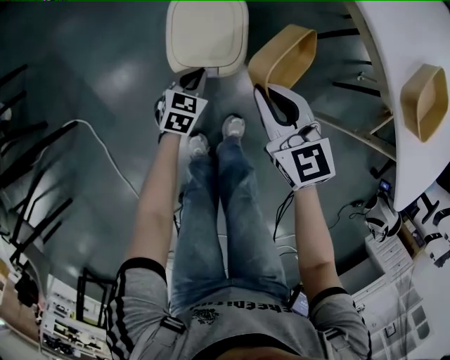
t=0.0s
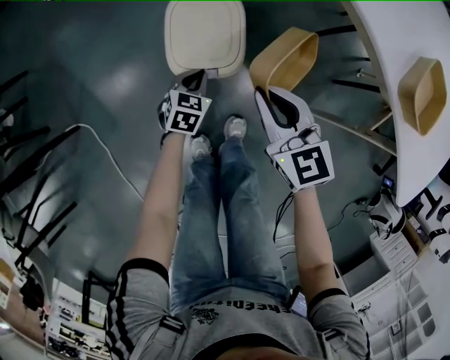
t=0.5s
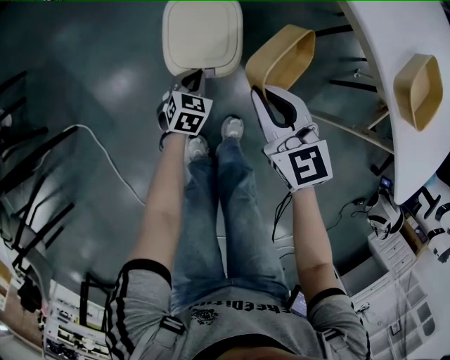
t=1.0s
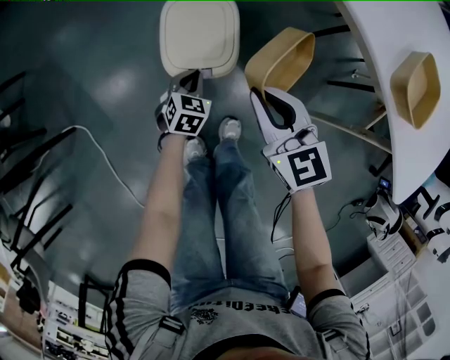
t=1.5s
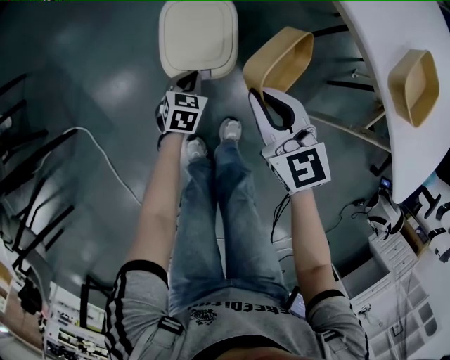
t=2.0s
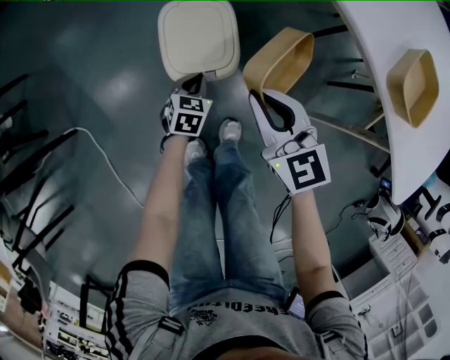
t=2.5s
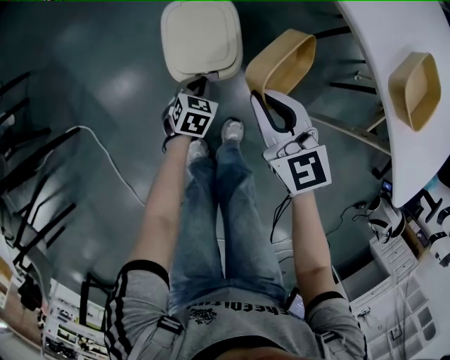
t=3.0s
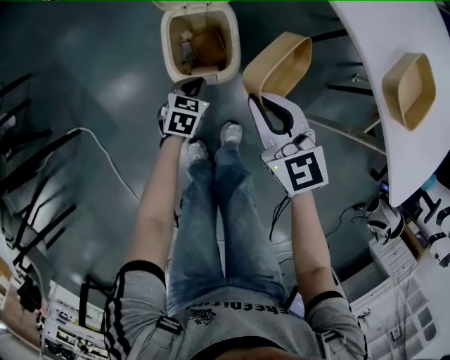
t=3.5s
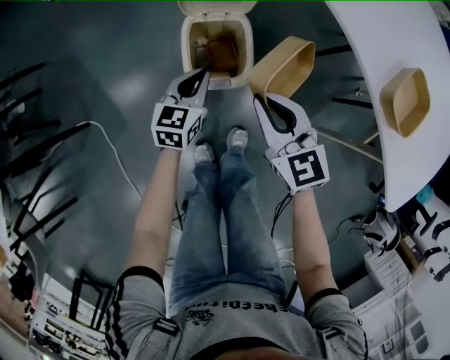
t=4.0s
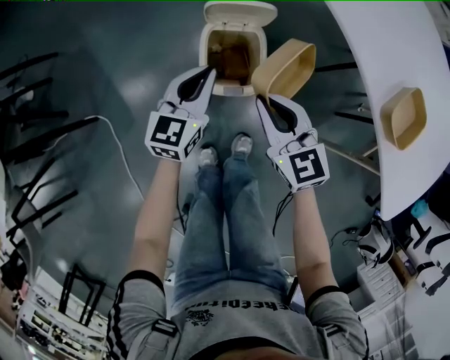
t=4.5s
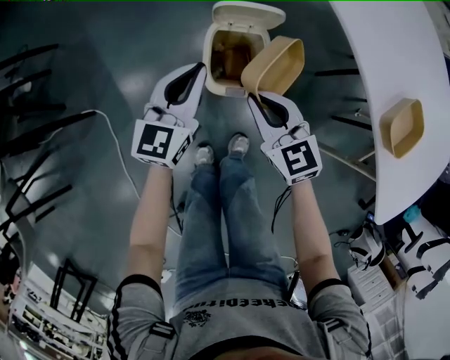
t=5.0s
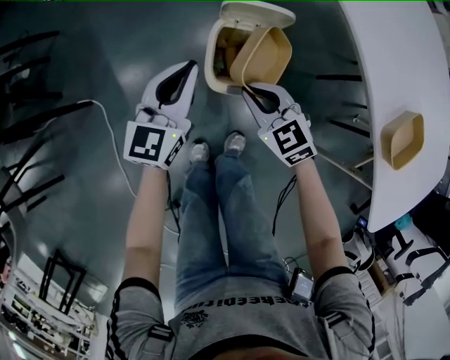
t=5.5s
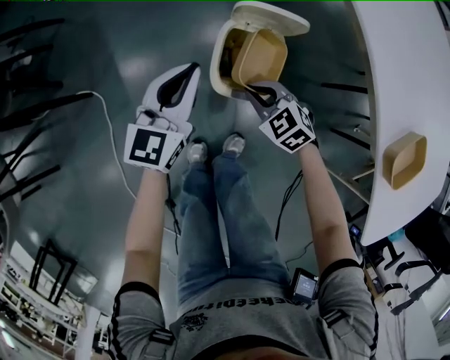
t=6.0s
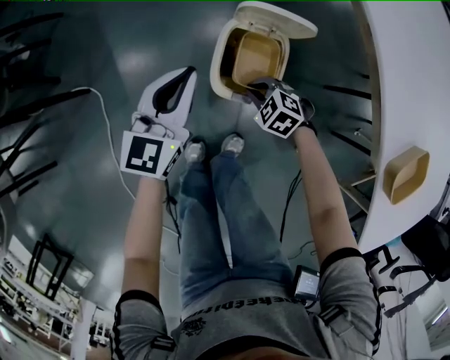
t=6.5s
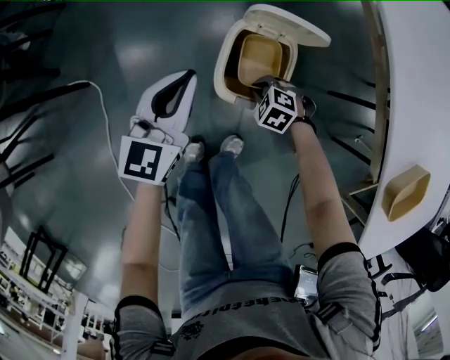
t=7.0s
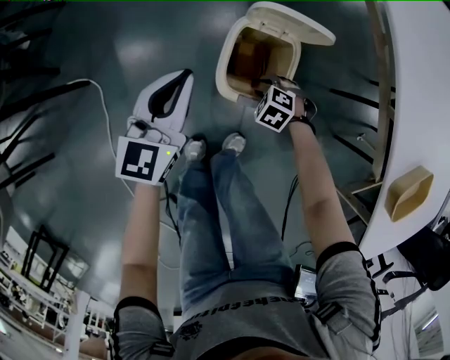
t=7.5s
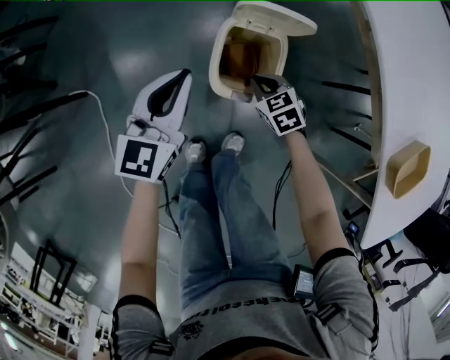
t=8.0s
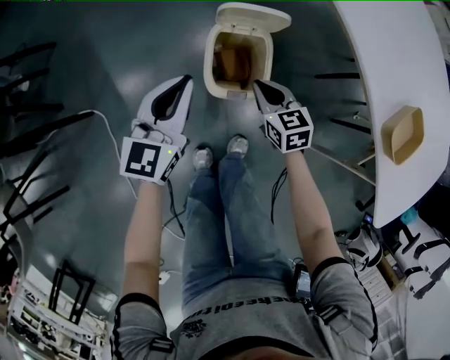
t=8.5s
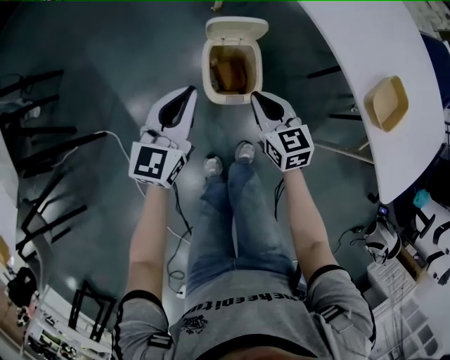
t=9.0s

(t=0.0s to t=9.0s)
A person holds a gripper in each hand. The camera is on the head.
t=0.0s - t=2.0s: The grippers stay close to where they were, moving slightly.
t=2.0s - t=4.5s: The left gripper is displaced upward by about 25 cm, and tips its fingers upward by about 30 degrees, while the right gripper changes place by approximately 5 cm.
t=4.5s - t=7.0s: The right gripper shifts approximately 30 cm downward, and tips its fingers downward by about 50 degrees. Meanwhile the left gripper changes place by about 10 cm.
t=7.0s - t=9.0s: The right gripper moves upward, roughly 25 cm, points its fingers some 50 degrees further upward, and opens, then closes once more; the left gripper shifts roughly 10 cm upward.

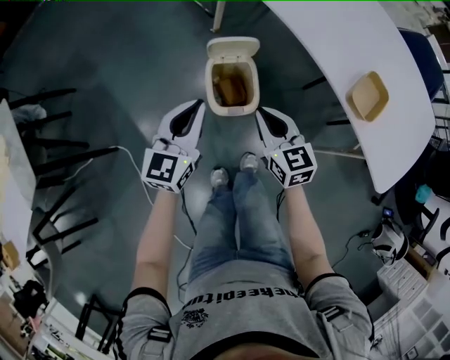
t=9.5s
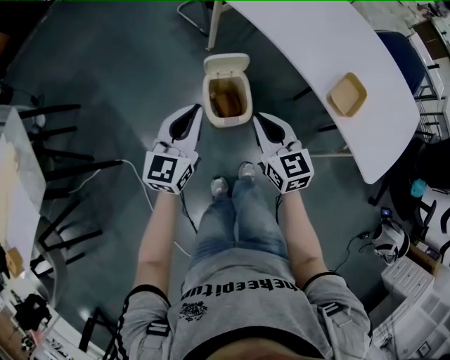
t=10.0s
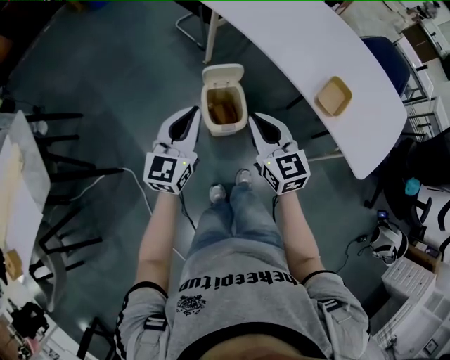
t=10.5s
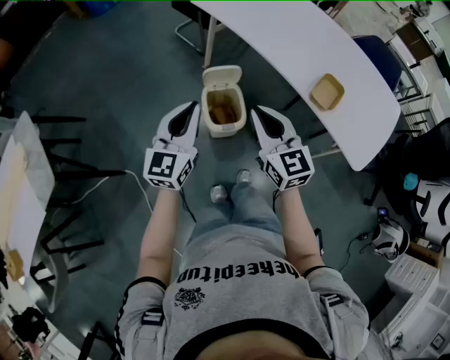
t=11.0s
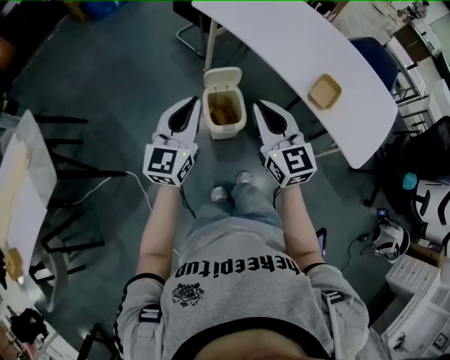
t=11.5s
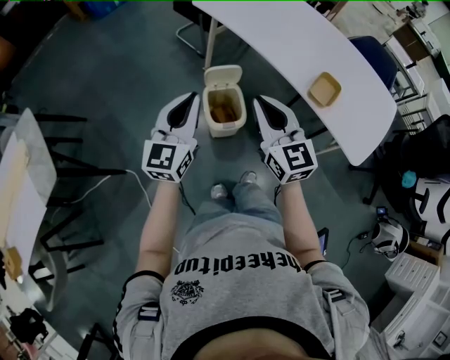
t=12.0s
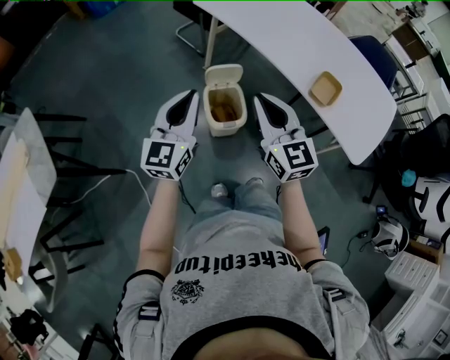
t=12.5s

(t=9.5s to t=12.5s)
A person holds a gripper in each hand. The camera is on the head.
t=9.5s - t=11.0s: The grippers both shift upward by some 15 cm.
t=11.0s - t=12.5s: There are only small adjustments of the grippers.

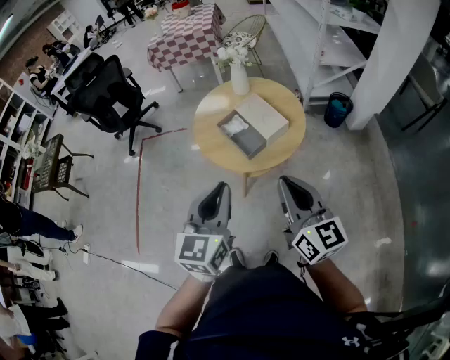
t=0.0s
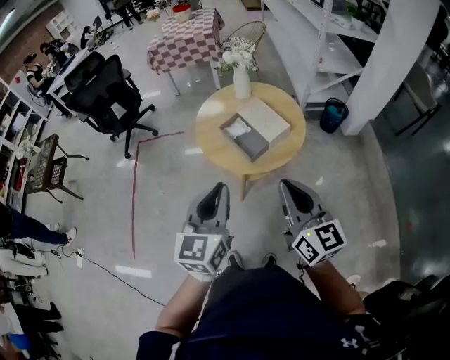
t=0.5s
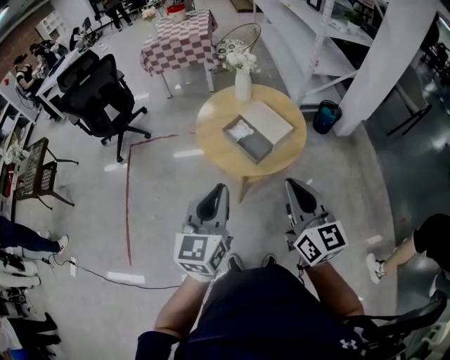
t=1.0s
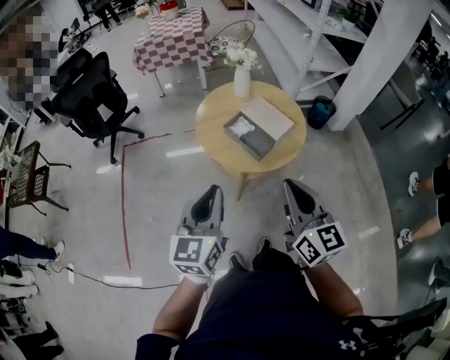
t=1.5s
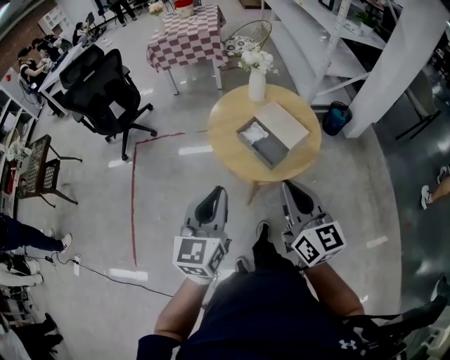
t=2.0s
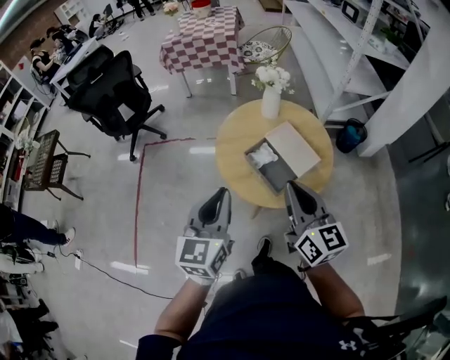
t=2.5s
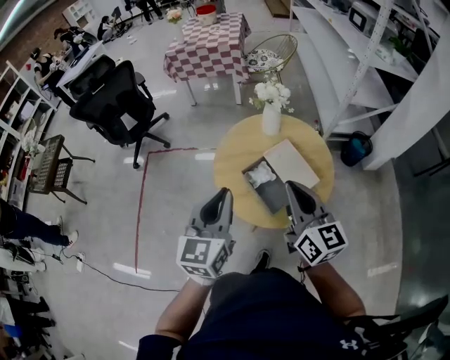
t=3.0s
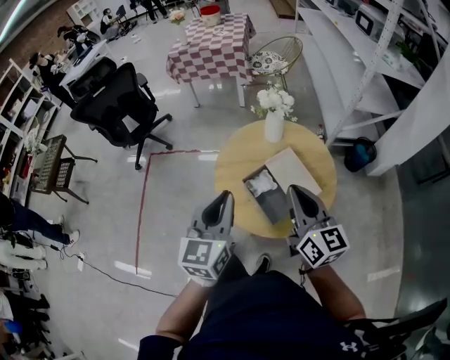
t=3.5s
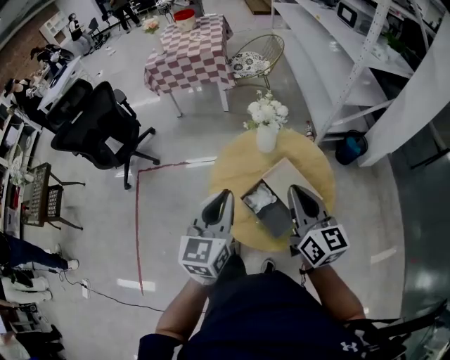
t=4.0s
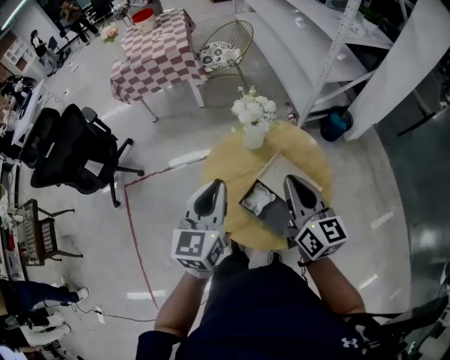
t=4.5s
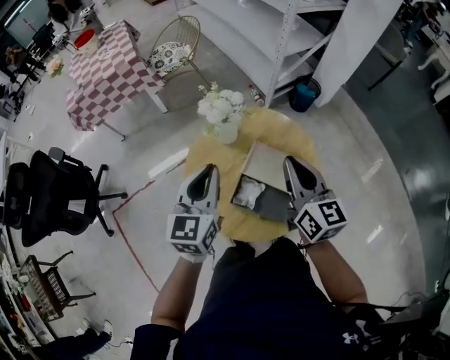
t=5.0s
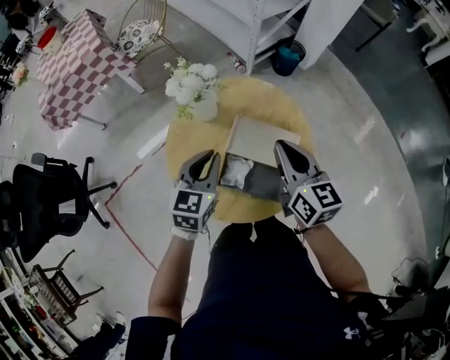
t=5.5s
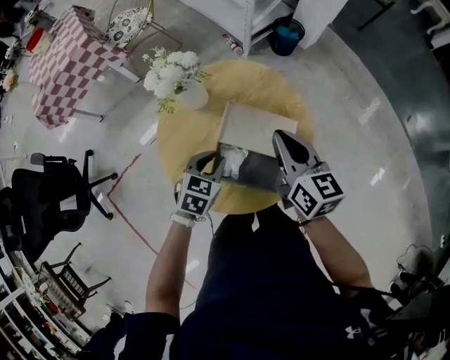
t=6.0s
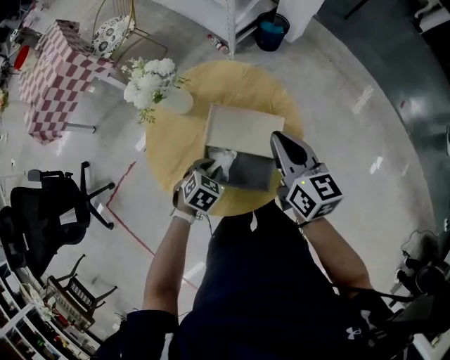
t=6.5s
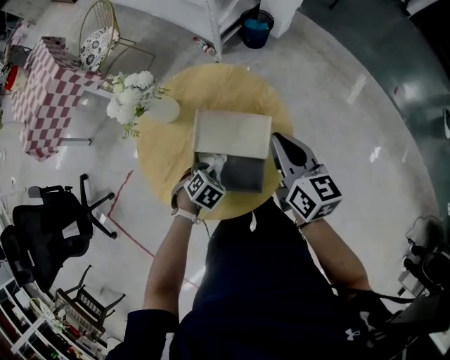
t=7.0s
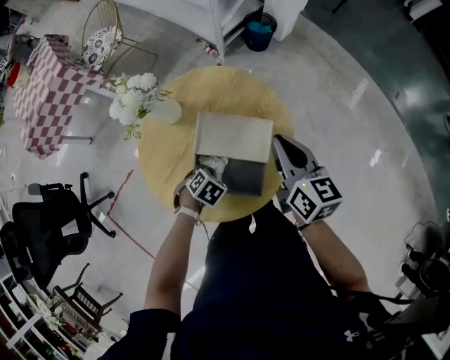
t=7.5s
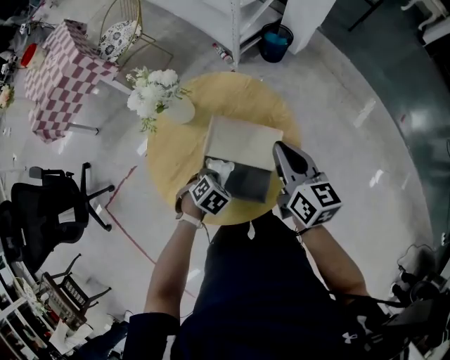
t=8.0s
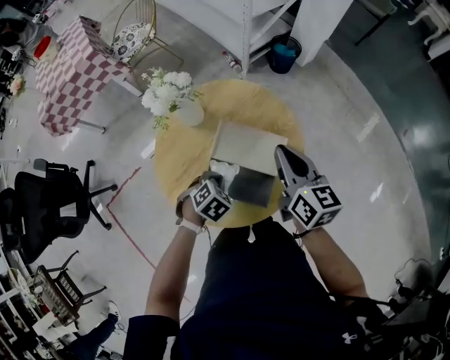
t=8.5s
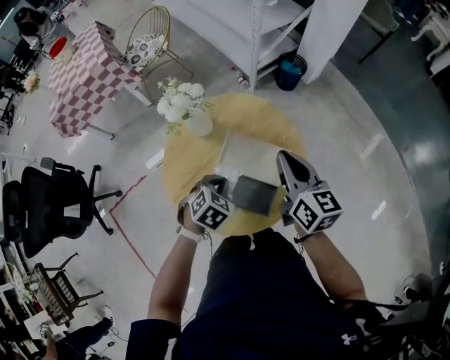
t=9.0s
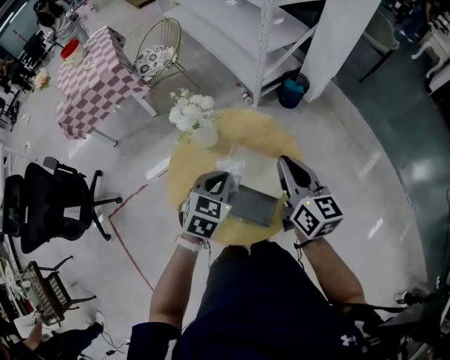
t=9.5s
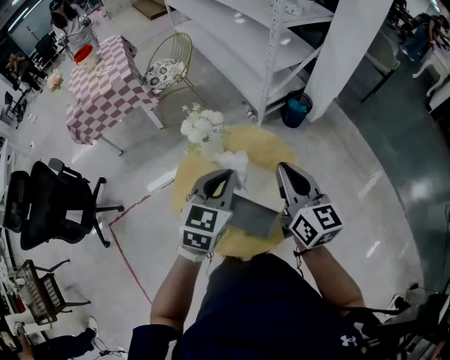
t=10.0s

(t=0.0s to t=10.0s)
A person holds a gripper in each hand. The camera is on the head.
t=0.0s - t=2.0s: Both grippers travel together to the left, about 15 cm.
t=2.0s - t=4.0s: Both grippers move forward, some 30 cm.
t=4.0s - t=6.0s: The right gripper heads downward, covering about 10 cm, and swivels roughly 30 degrees. The left gripper moves downward, some 25 cm, and tips its fingers downward by about 40 degrees.
t=6.0s - t=8.0s: The left gripper moves downward, approximately 10 cm, and rotates roughly 30 degrees. Meanwhile the right gripper moves roughly 5 cm.
t=8.0s - t=10.0s: The left gripper shifts approximately 30 cm upward, and angles its fingers upward, by some 50 degrees; the right gripper shifts about 15 cm upward and to the left.

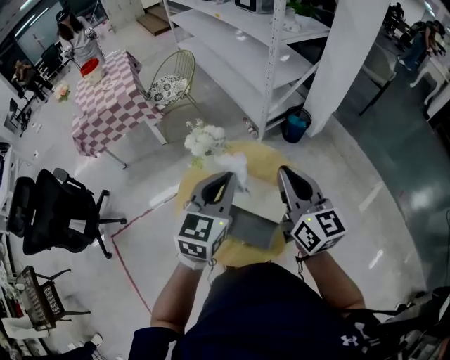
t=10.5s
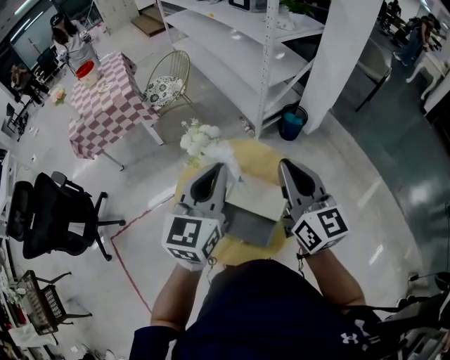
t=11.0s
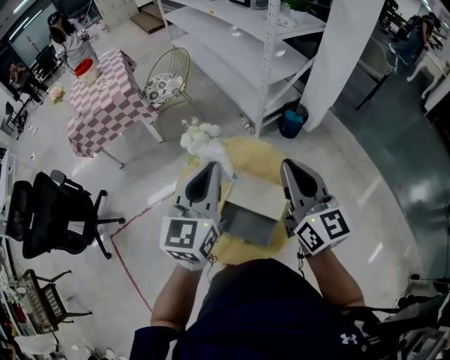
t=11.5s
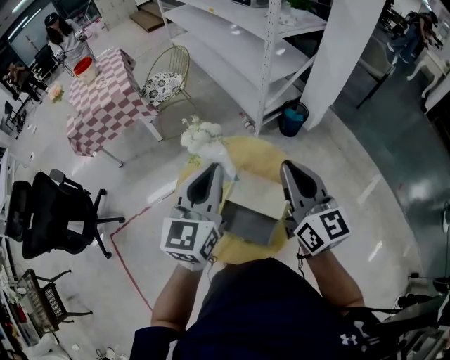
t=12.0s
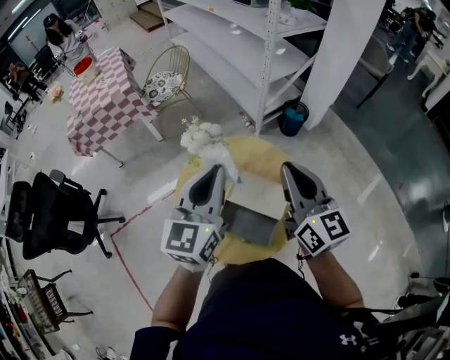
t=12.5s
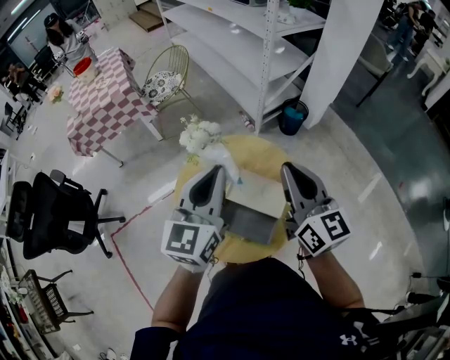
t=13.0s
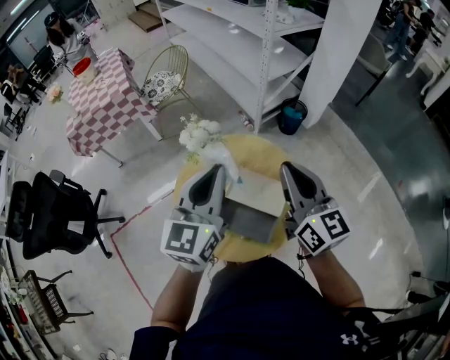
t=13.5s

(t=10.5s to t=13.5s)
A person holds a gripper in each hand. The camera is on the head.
t=10.5s - t=13.5s: There are only small adjustments of the grippers.

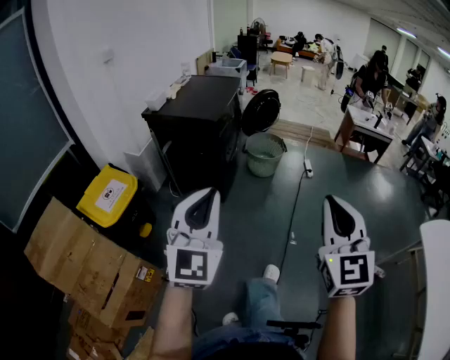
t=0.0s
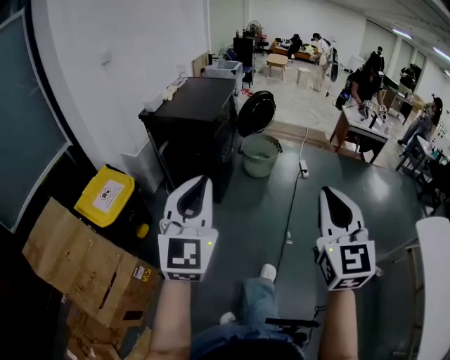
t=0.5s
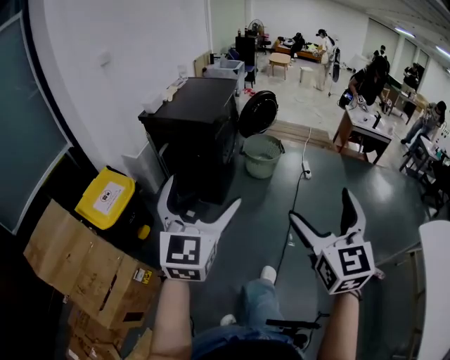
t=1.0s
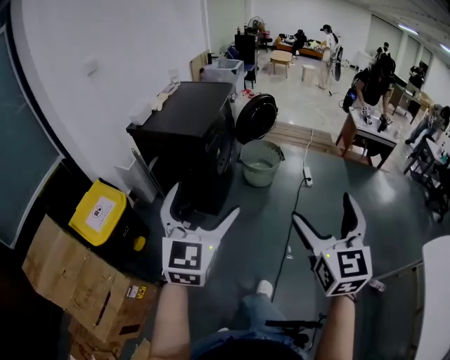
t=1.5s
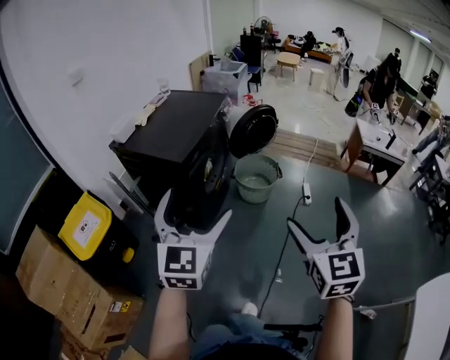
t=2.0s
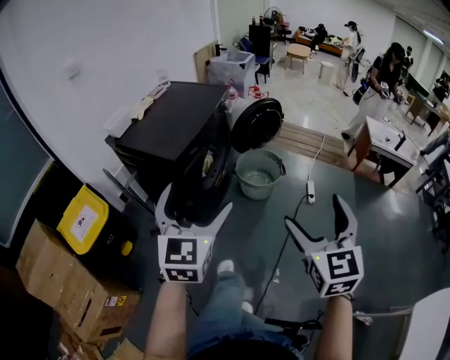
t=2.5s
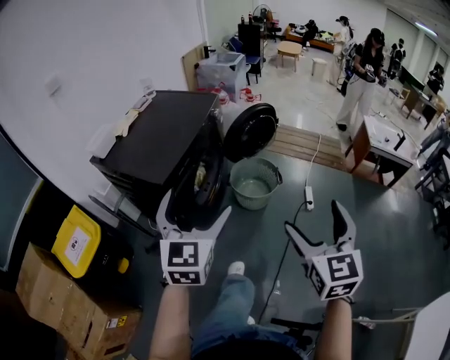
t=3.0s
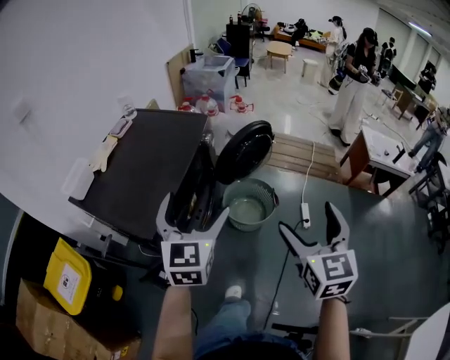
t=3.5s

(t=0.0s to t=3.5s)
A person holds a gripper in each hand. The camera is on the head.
t=0.0s - t=2.0s: Both grippers travel together forward, approximately 30 cm. The right gripper opens its fingers. The left gripper opens its fingers.
t=2.0s - t=3.5s: The grippers both shift forward by some 35 cm.
